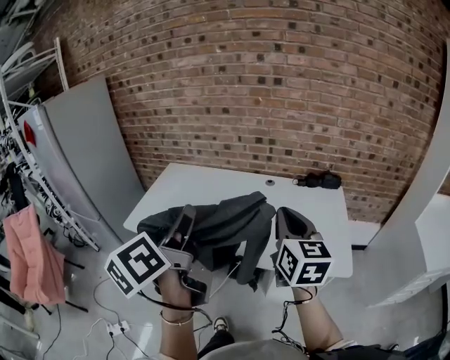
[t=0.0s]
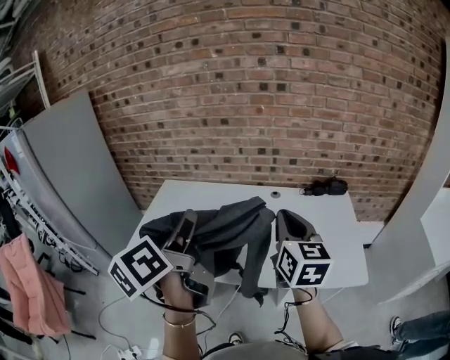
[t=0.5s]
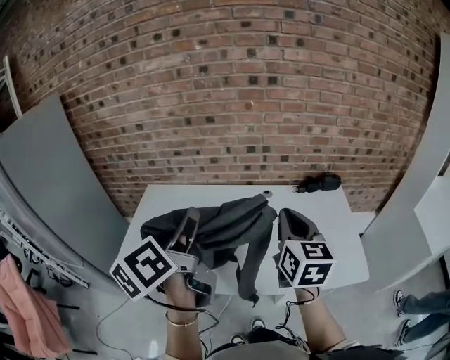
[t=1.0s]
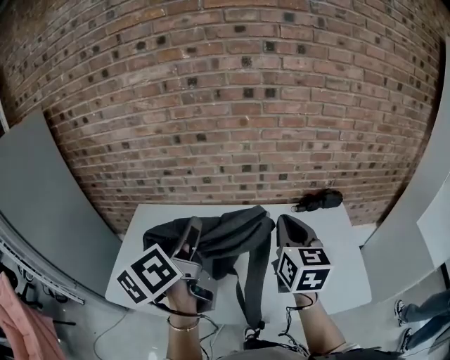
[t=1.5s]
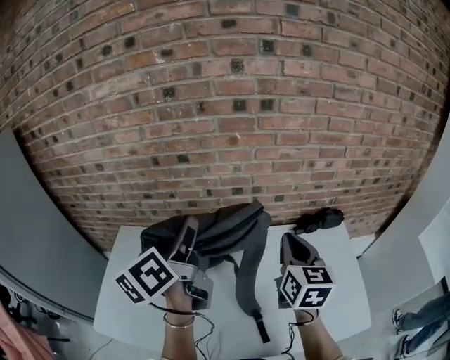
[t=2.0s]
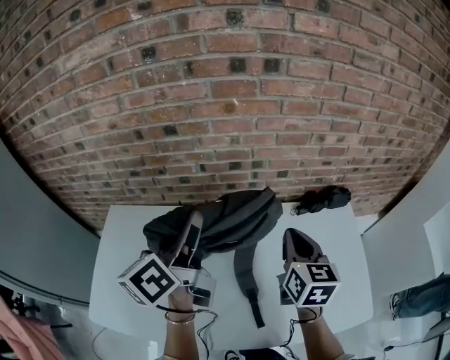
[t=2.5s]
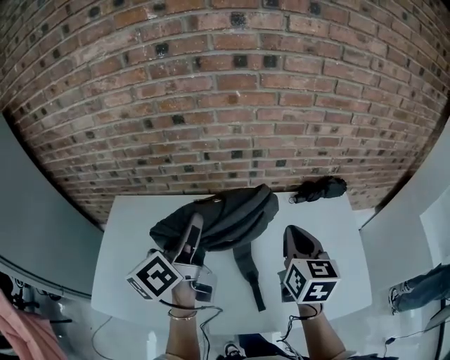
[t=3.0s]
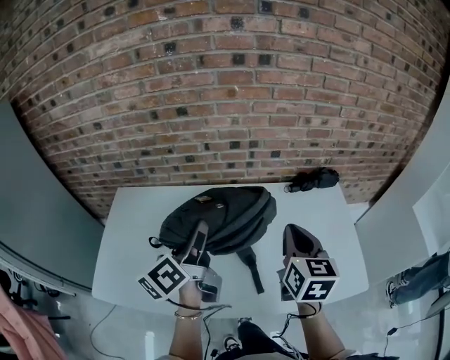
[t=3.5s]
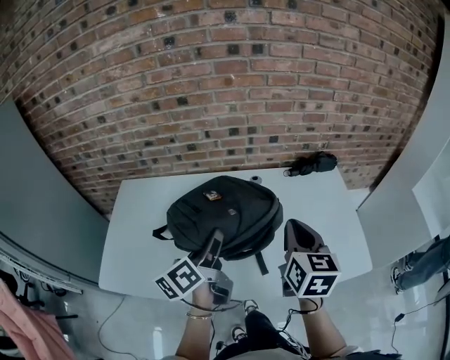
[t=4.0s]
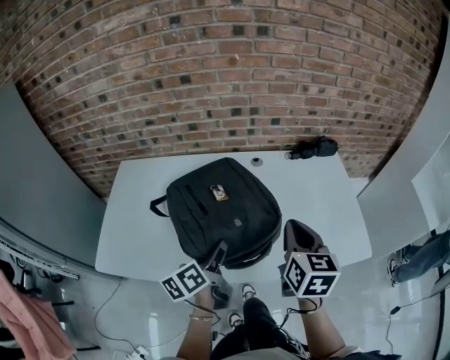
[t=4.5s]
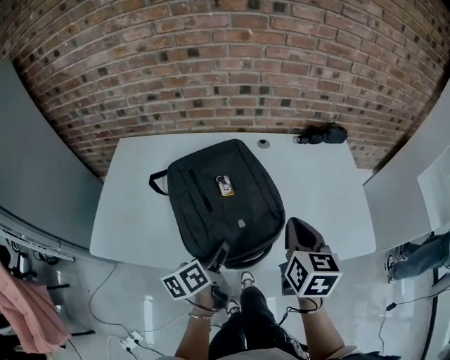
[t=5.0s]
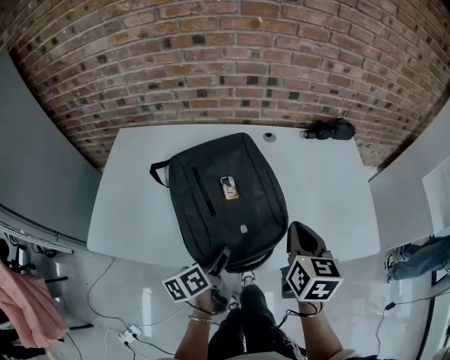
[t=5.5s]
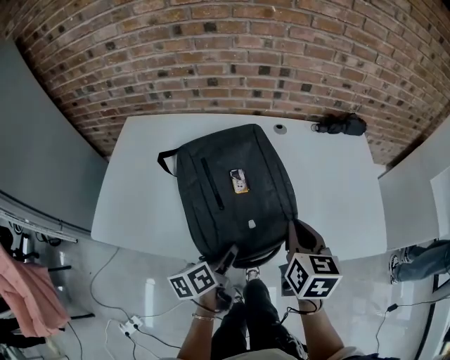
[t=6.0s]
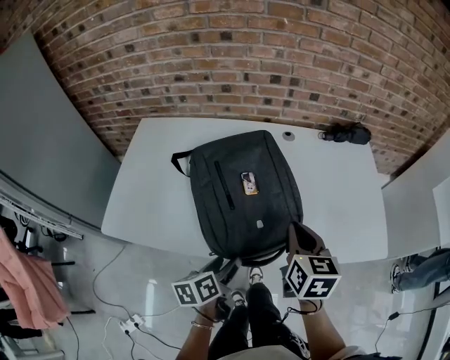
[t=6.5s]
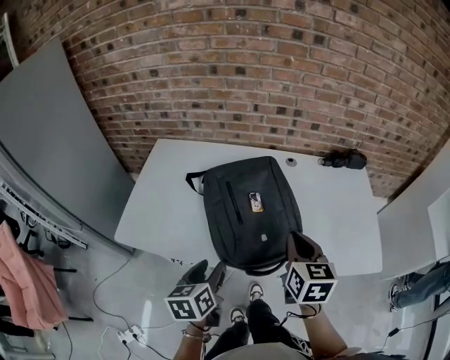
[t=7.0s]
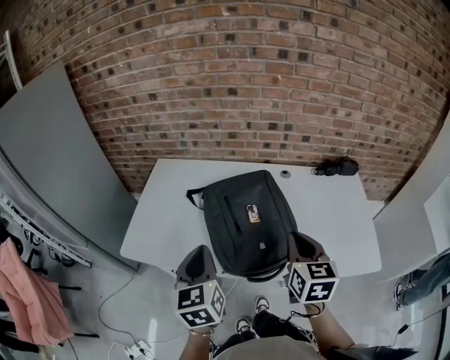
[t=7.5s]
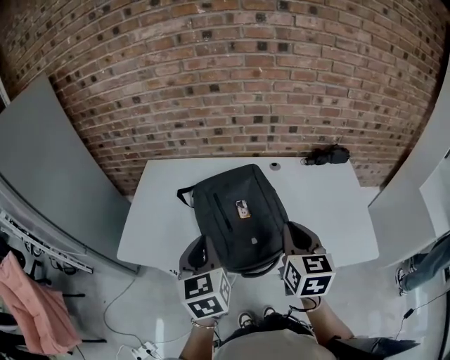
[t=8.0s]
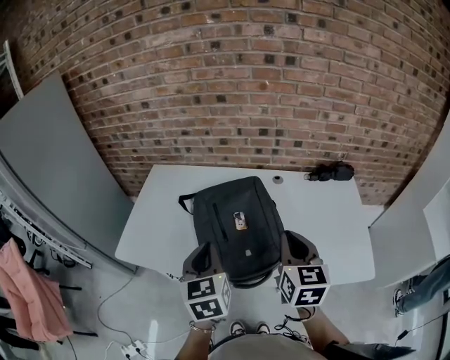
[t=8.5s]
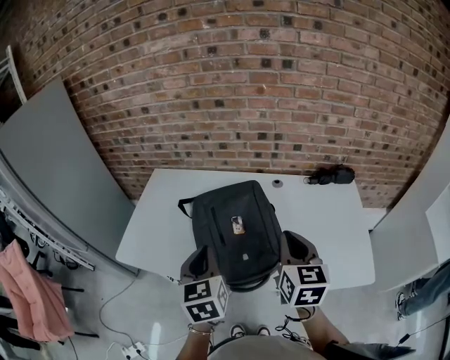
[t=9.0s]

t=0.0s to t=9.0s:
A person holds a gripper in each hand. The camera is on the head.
t=0.0s to t=2.0s: Both grippers travel together forward, approximately 40 cm.
t=2.0s to t=4.5s: The right gripper goes about 25 cm backward and downward, while the left gripper heads downward and backward, covering some 35 cm, and rotates some 20 degrees.
t=4.5s to t=7.0s: The left gripper heads backward and to the left, covering roughly 15 cm, and turns by about 30 degrees, while the right gripper is displaced to the left and backward by approximately 10 cm, and reaches roughly 10 cm downward, then returns.
t=7.0s to t=9.0s: The right gripper is displaced upward and to the right by roughly 10 cm. The left gripper travels upward and to the right by some 15 cm, rotates some 30 degrees, and closes up.

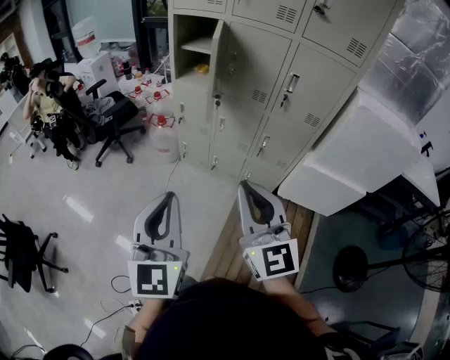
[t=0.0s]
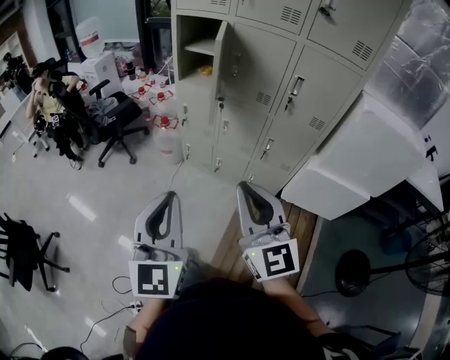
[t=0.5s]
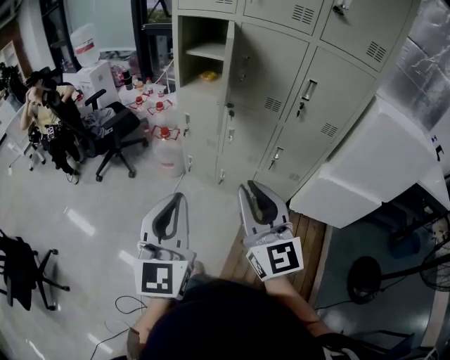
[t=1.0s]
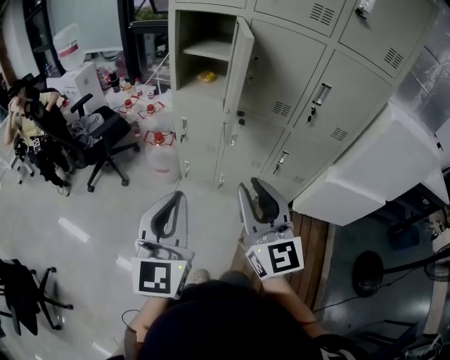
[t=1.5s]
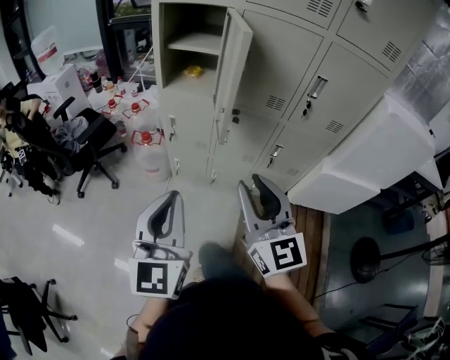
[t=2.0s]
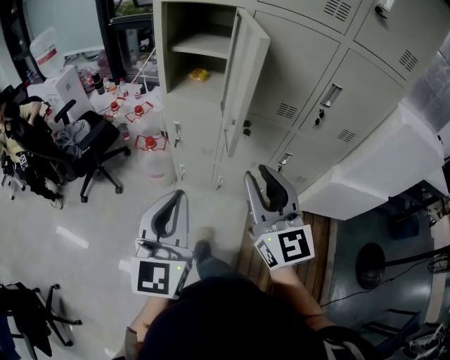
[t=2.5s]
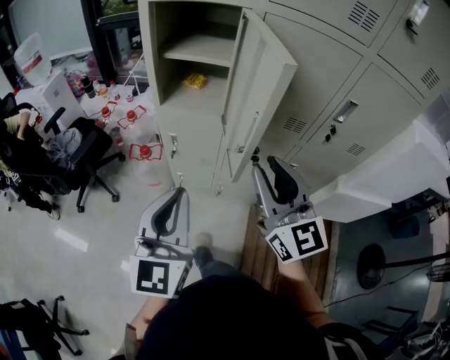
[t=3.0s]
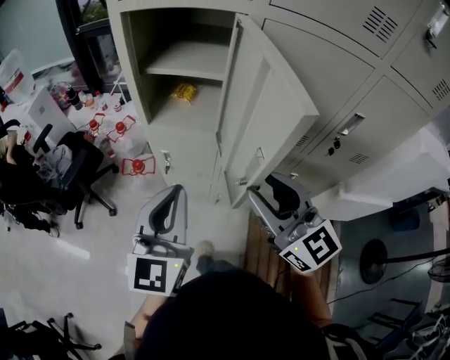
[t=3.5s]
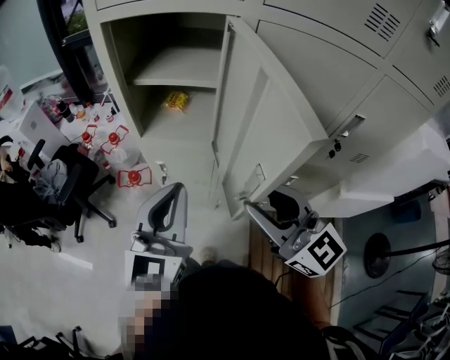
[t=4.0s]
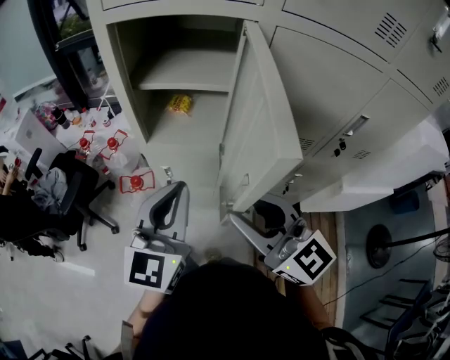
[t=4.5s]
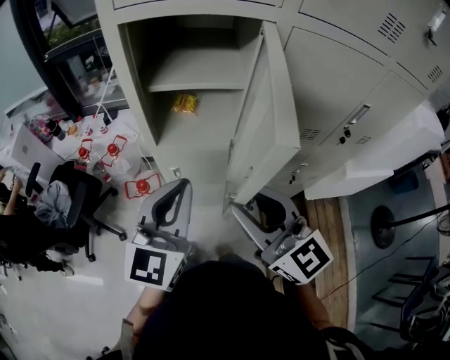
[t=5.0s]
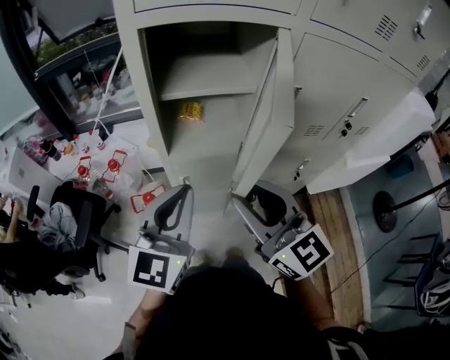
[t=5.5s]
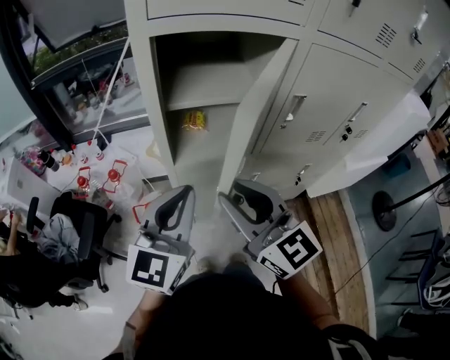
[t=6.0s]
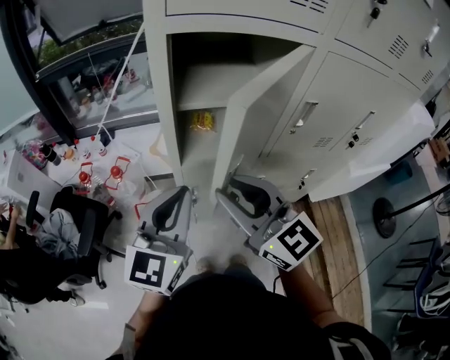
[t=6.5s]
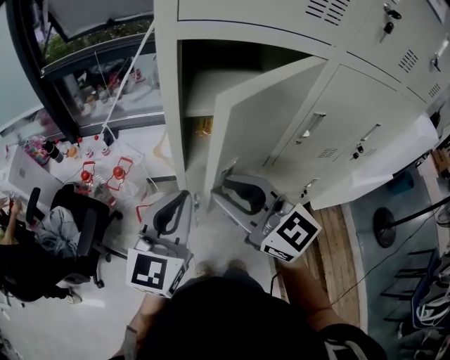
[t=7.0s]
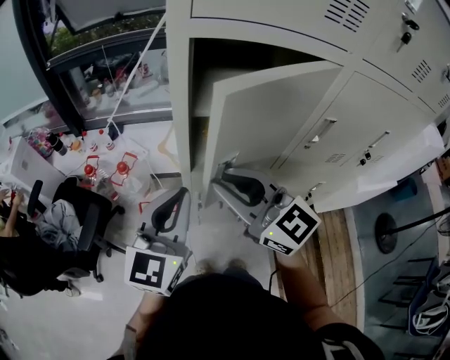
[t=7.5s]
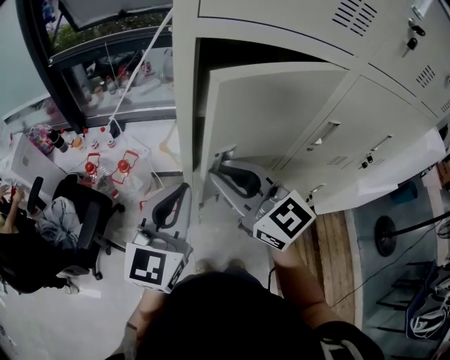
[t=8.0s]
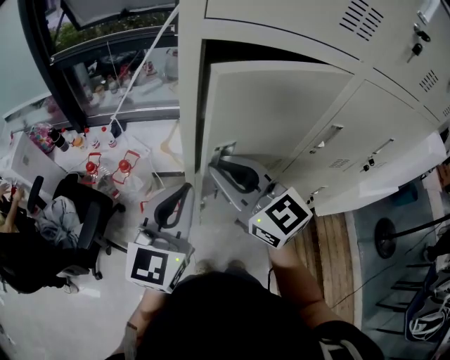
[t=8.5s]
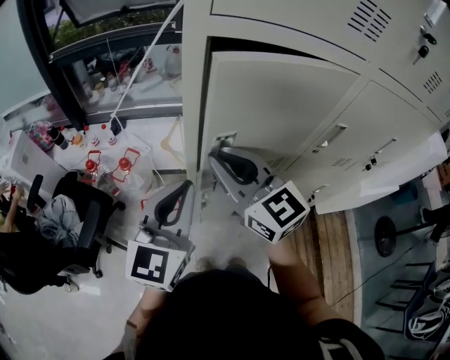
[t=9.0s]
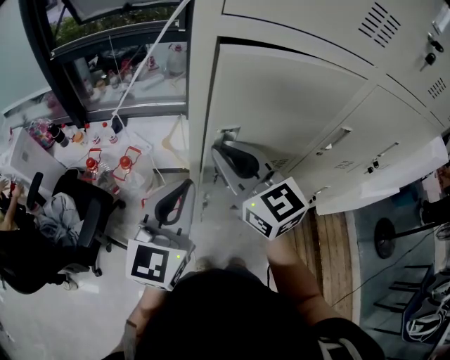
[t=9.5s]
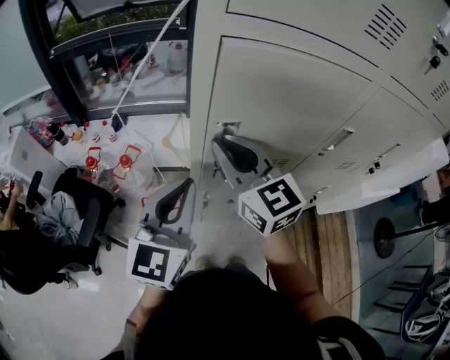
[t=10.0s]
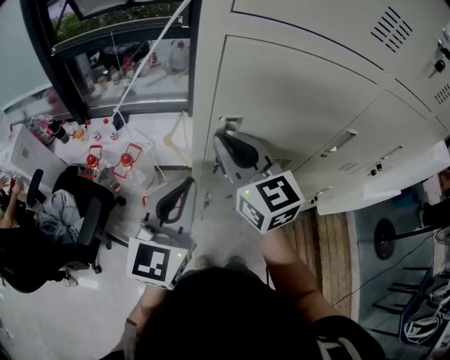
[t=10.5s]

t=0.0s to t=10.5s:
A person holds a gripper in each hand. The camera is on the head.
t=0.0s to t=2.0s: The grippers both shift forward and downward by roughly 25 cm. The right gripper opens.
t=2.0s to t=4.0s: Both grippers travel together forward, roughly 30 cm.
t=4.0s to t=6.5s: Both grippers travel together to the left and forward, roughly 20 cm.
t=6.5s to t=8.5s: The right gripper is displaced forward by roughly 10 cm.
t=8.5s to t=10.5s: The right gripper travels forward by some 5 cm.

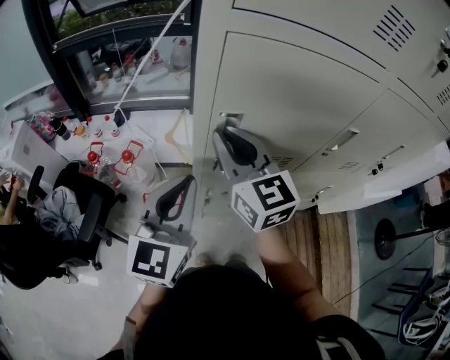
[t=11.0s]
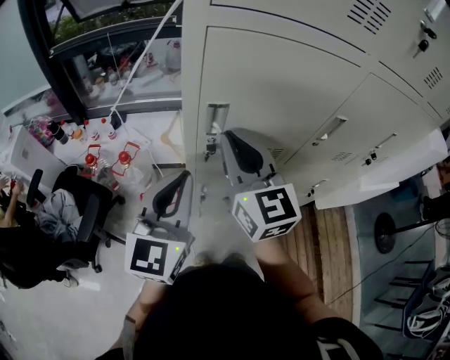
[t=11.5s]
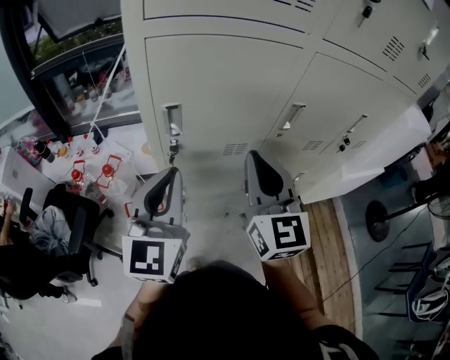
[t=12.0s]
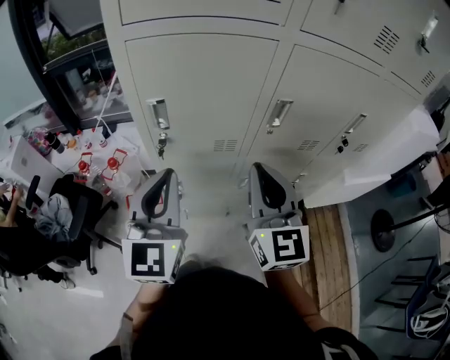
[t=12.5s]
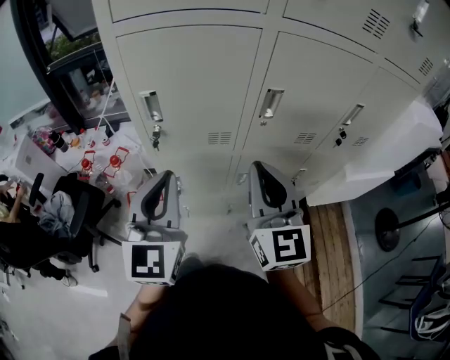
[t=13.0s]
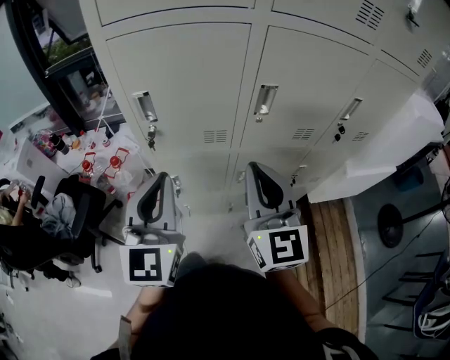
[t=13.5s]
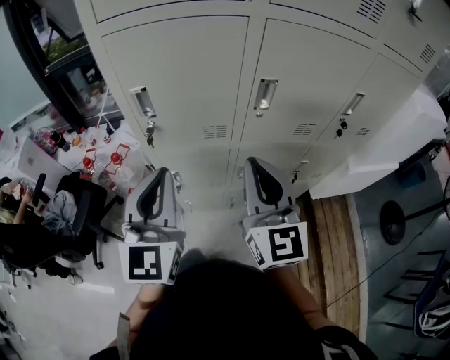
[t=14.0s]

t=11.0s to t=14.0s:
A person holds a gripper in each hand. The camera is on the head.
t=11.0s to t=12.5s: The right gripper is displaced to the right and backward by some 25 cm, and rotates roughly 20 degrees. Meanwhile the left gripper goes about 10 cm to the right and backward.
t=12.5s to t=14.0s: The grippers stay close to where they were, moving slightly.

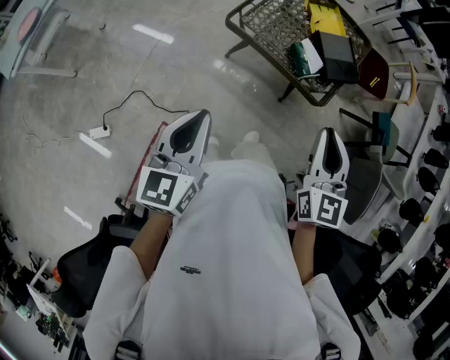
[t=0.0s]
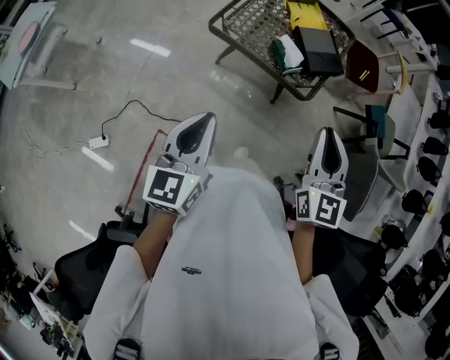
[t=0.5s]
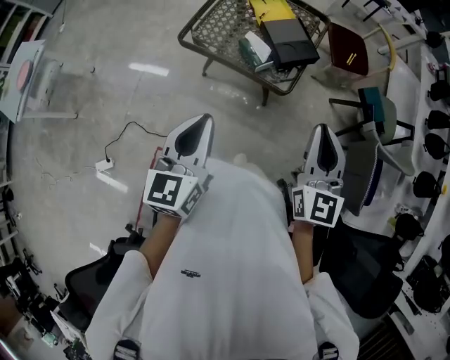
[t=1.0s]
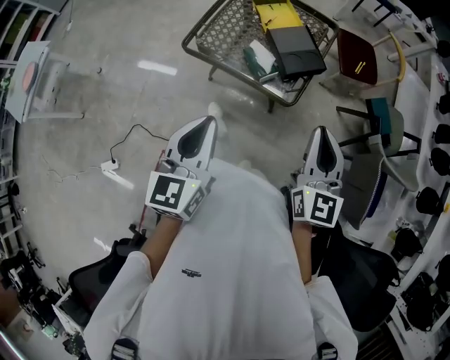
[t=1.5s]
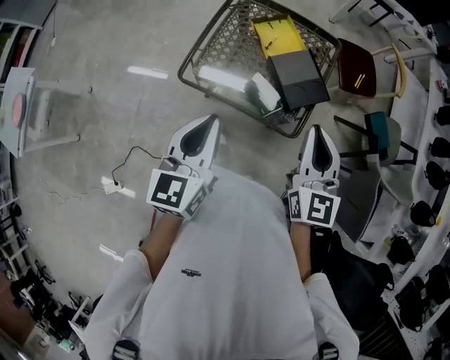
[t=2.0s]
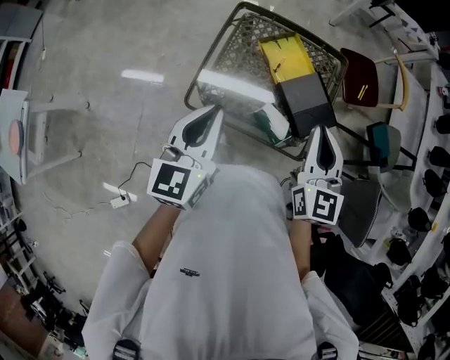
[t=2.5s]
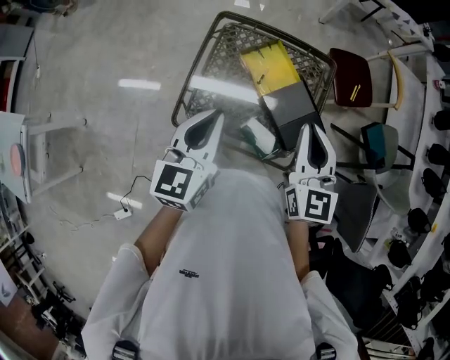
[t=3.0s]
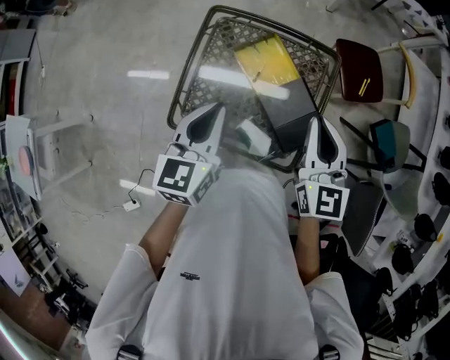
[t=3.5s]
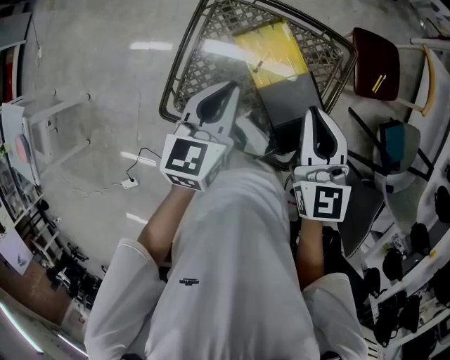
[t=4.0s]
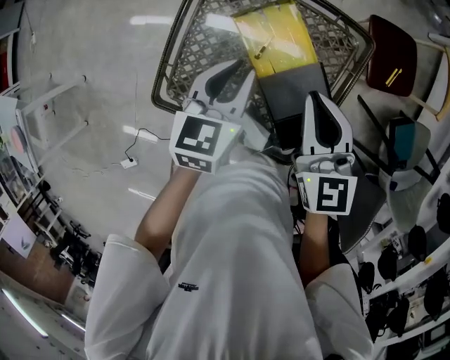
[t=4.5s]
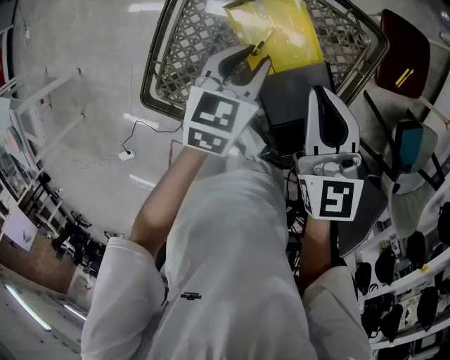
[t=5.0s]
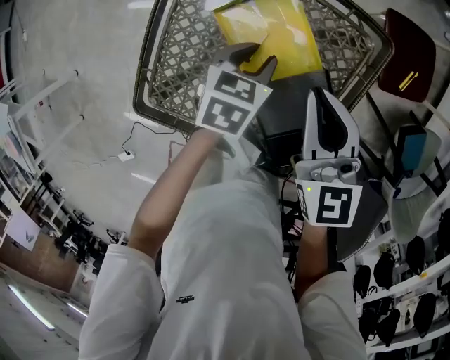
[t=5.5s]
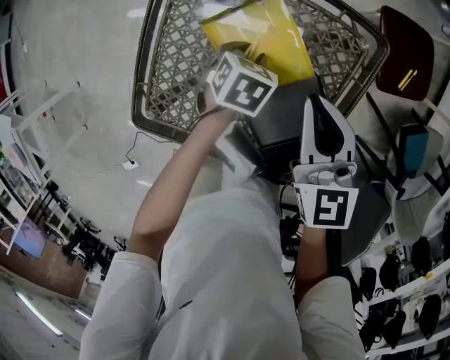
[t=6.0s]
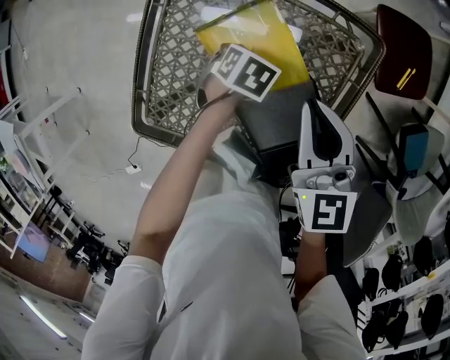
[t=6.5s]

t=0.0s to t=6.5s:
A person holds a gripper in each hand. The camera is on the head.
t=0.0s to t=2.0s: Both grippers move forward and to the right, about 25 cm.
t=2.0s to t=4.5s: The grippers both shift forward and downward by about 40 cm. The left gripper swivels roughly 20 degrees; the right gripper rotates approximately 20 degrees.
t=4.5s to t=6.5s: The right gripper moves downward, roughly 10 cm; the left gripper heads downward, covering roughly 30 cm, and points its fingers approximately 50 degrees further downward.
